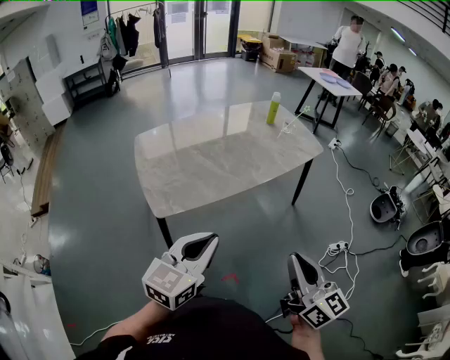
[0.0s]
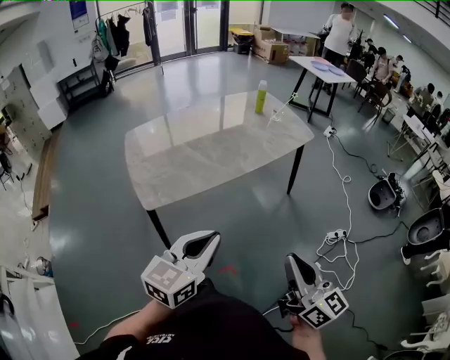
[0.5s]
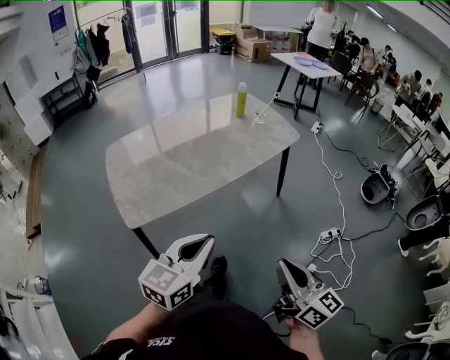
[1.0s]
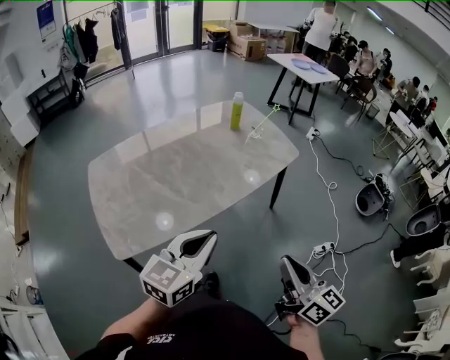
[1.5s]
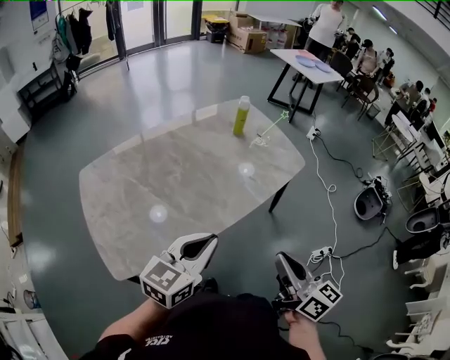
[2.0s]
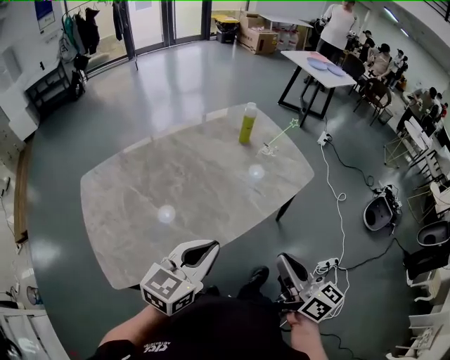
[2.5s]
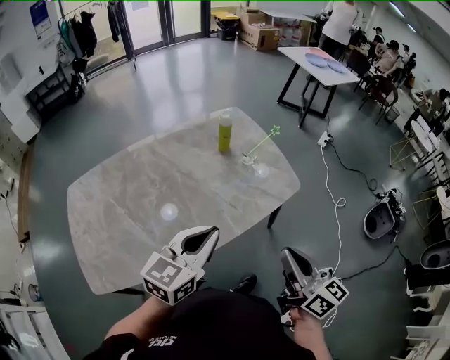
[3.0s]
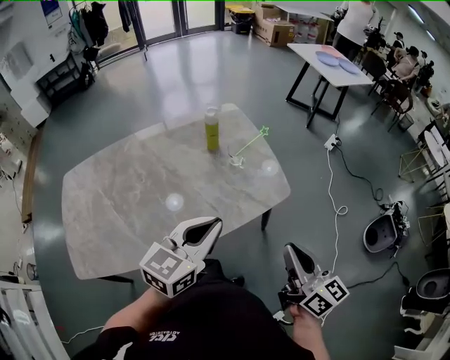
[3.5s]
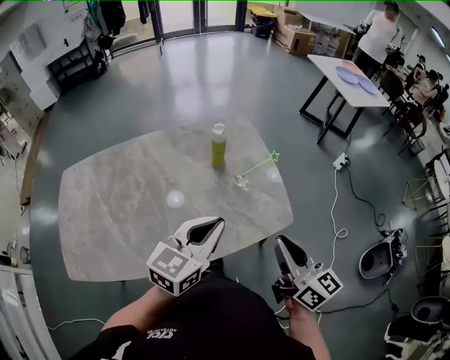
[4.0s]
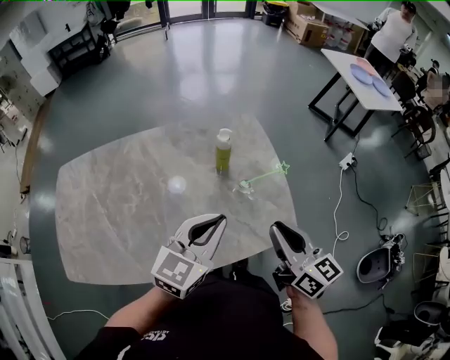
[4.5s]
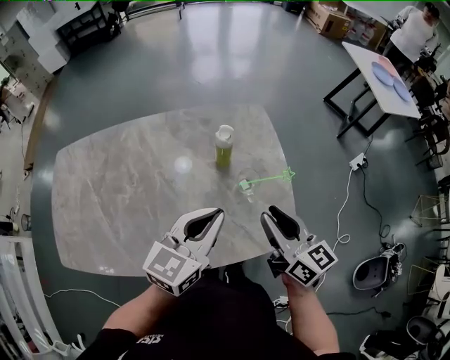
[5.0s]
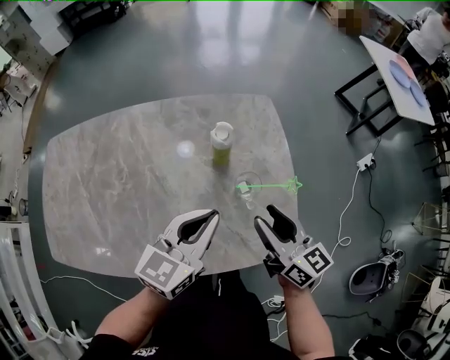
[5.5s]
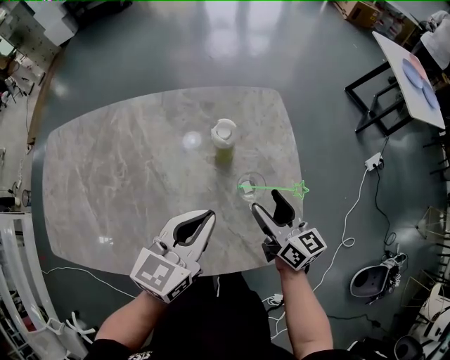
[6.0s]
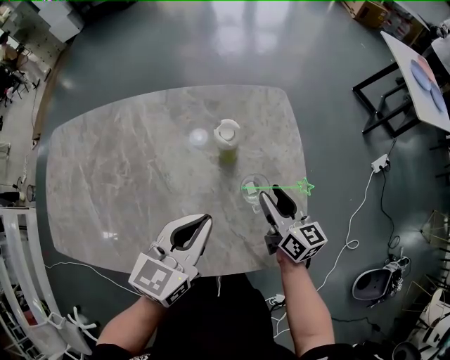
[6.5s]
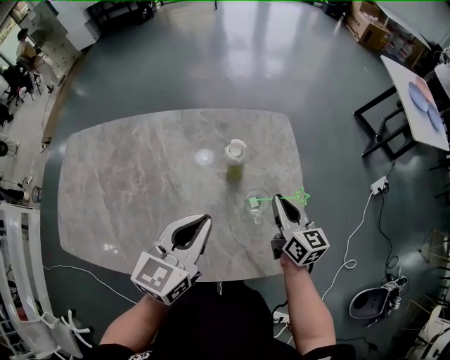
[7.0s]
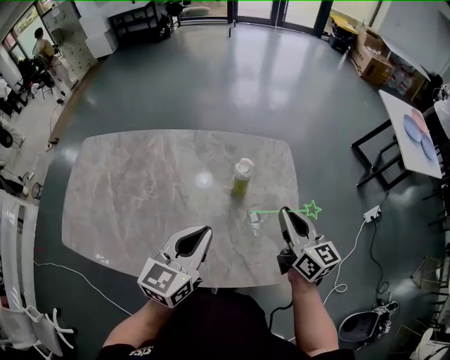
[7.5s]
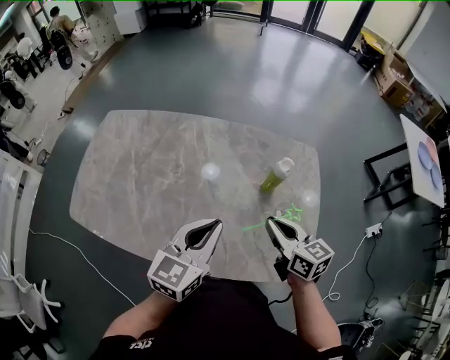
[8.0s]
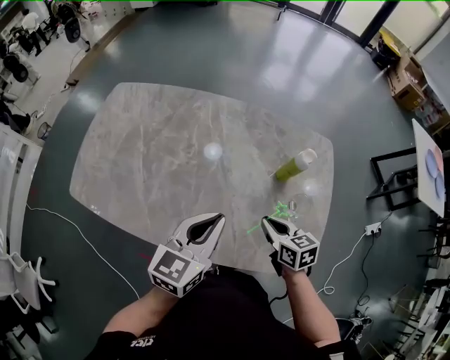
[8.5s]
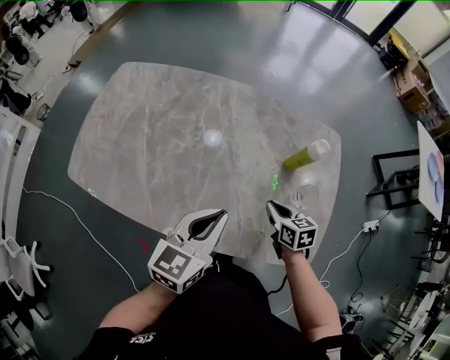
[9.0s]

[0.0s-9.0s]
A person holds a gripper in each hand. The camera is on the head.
0.0s to 2.0s: The two grippers go approximately 30 cm forward.
2.0s to 4.5s: Both grippers are carried forward and to the right, about 50 cm. The right gripper rotates about 20 degrees, while the left gripper turns by some 20 degrees.
4.5s to 7.0s: The right gripper shifts approximately 25 cm forward and downward, and opens, then closes once more; the left gripper heads forward, covering about 10 cm, and rotates roughly 20 degrees.
7.0s to 9.0s: The right gripper shifts approximately 20 cm to the left, and turns by some 40 degrees. Meanwhile the left gripper moves to the left and backward, roughly 15 cm.

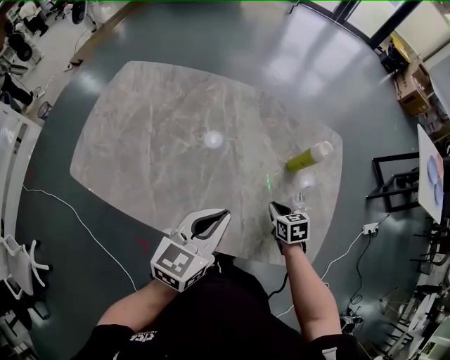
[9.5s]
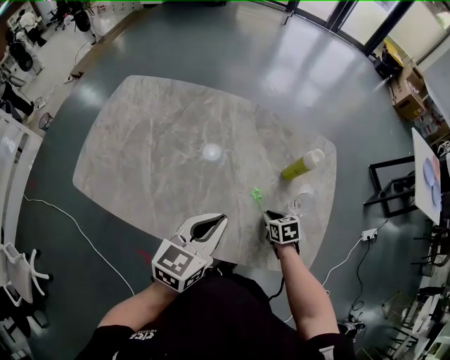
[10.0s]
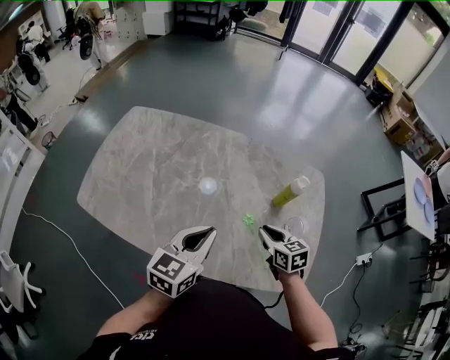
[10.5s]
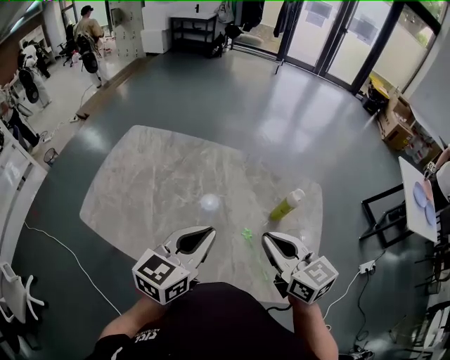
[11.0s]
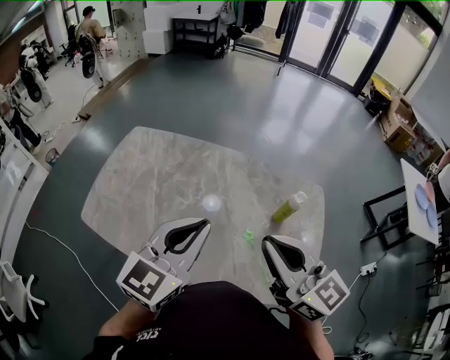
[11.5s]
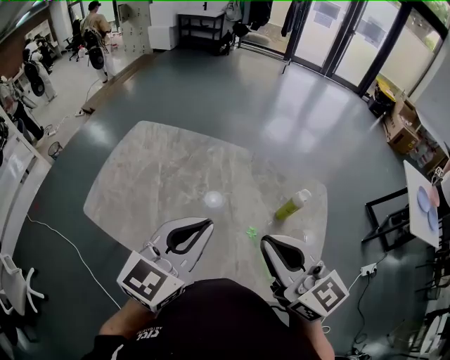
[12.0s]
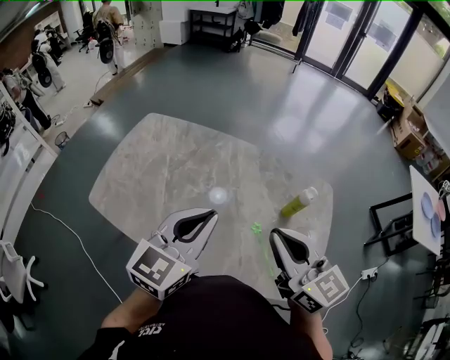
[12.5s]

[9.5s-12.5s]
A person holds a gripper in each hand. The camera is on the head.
9.5s to 11.0s: The right gripper is displaced upward by about 35 cm, and angles its fingers upward, by approximately 40 degrees, while the left gripper moves upward, roughly 10 cm.
11.0s to 12.5s: The right gripper moves upward, about 5 cm; the left gripper moves approximately 5 cm.

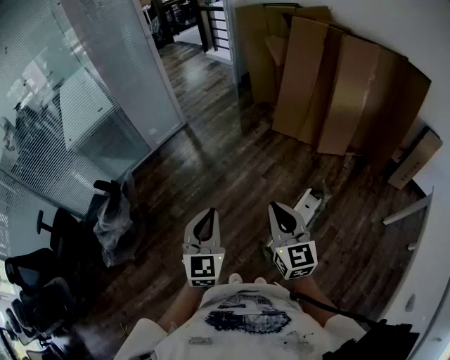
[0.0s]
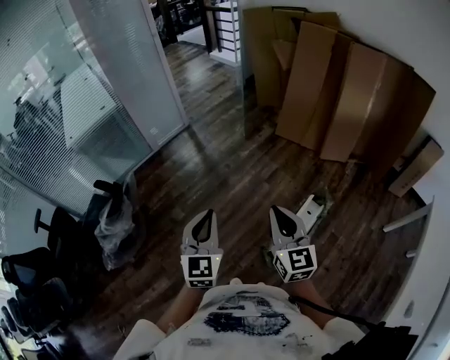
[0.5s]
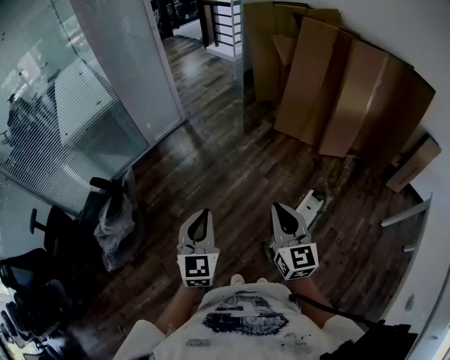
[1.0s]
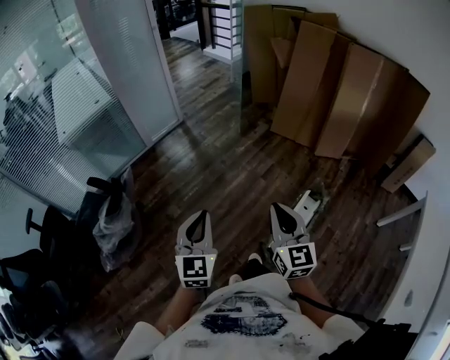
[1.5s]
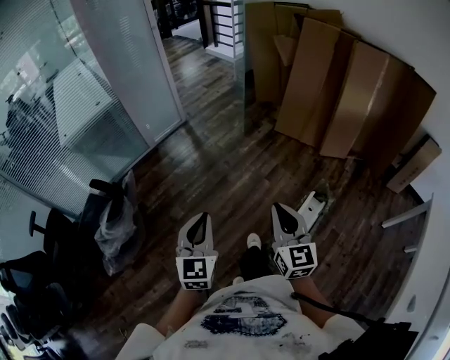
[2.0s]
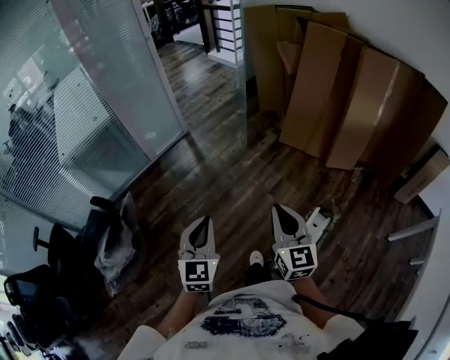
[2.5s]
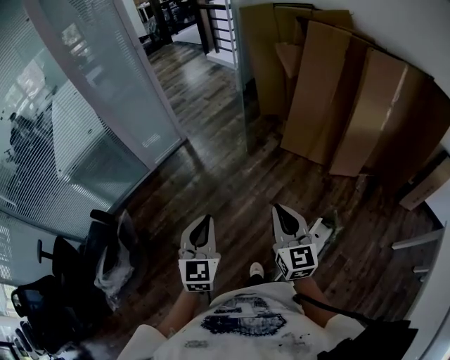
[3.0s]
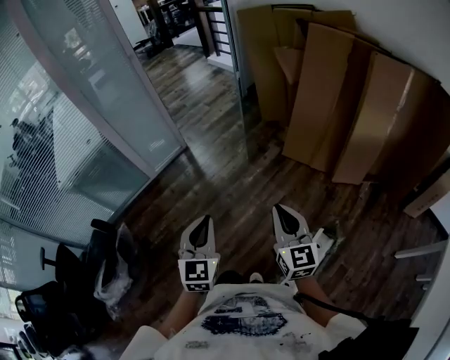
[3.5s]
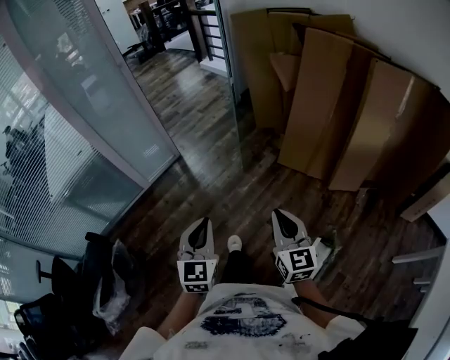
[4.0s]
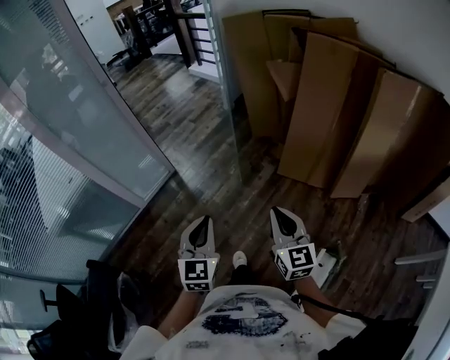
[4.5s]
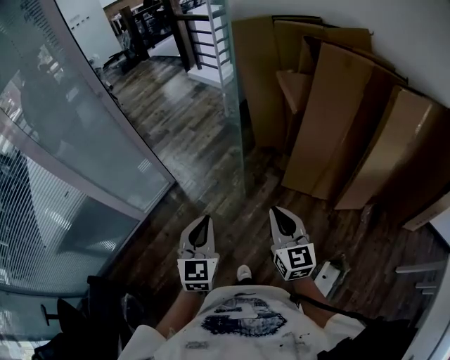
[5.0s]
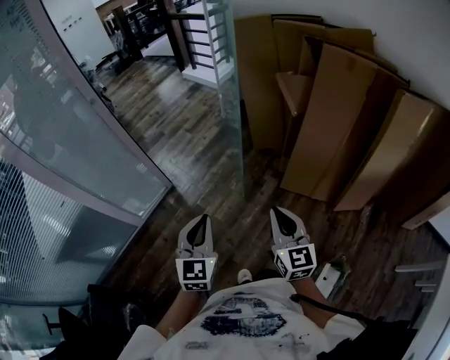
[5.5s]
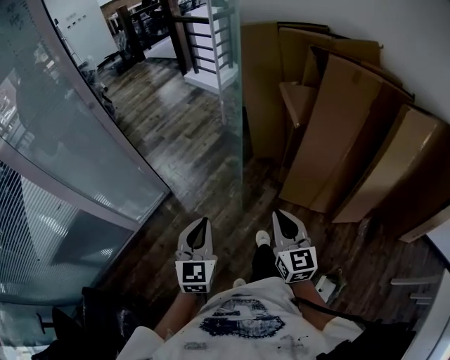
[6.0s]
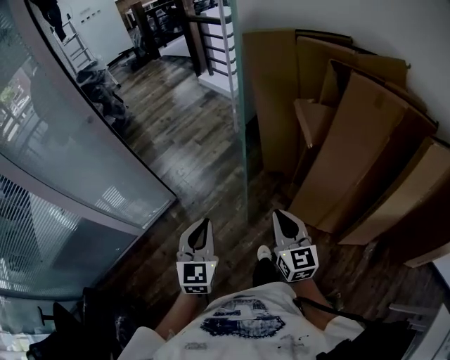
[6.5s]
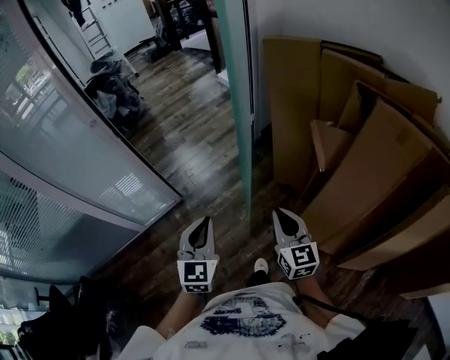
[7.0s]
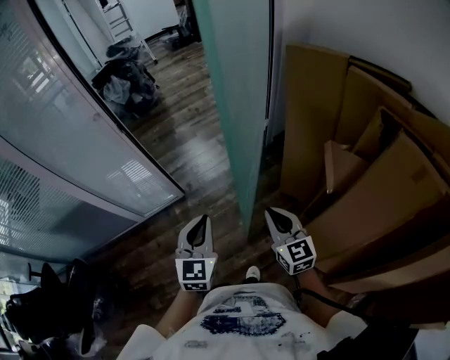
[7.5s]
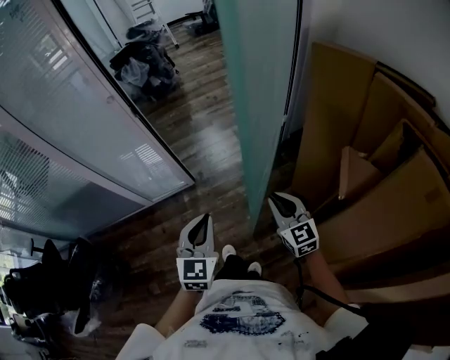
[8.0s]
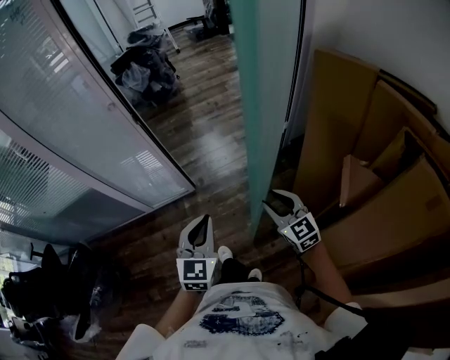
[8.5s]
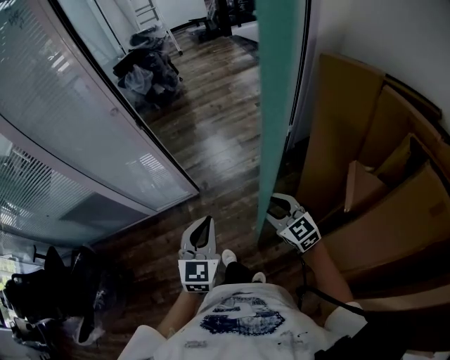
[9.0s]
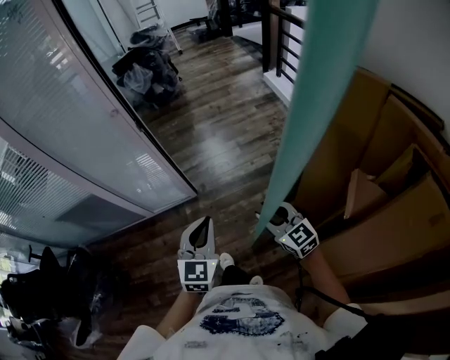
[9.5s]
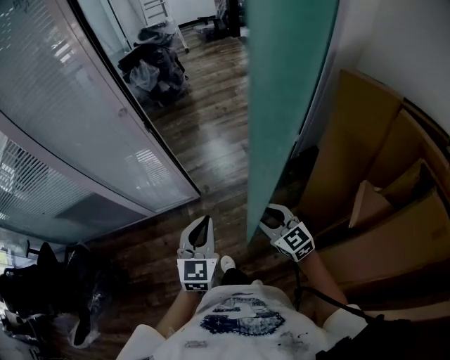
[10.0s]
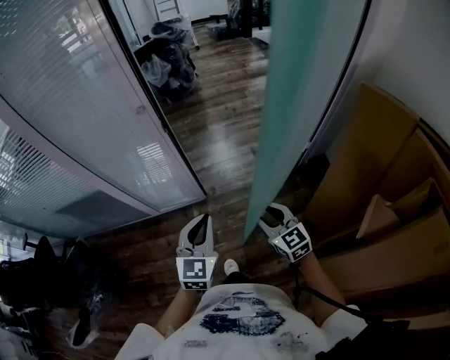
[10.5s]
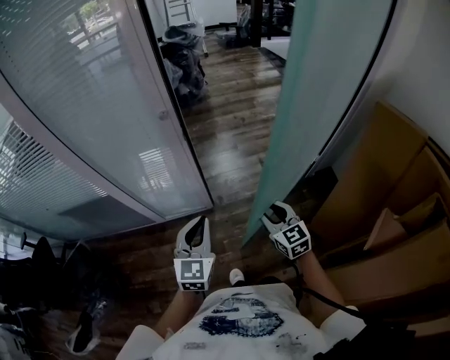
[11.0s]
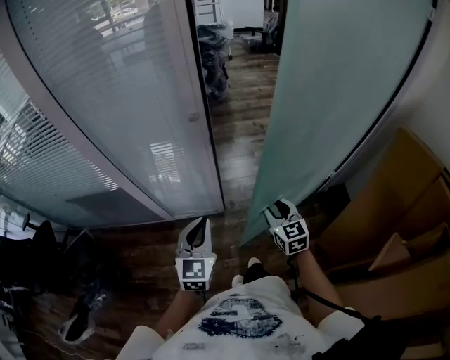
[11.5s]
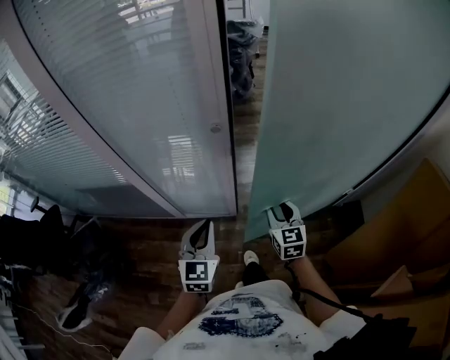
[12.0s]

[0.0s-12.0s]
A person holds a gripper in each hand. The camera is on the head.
0.0s to 2.0s: The two grippers go roughly 10 cm to the left.
2.0s to 4.0s: The grippers both shift forward by roughly 35 cm.
4.0s to 6.0s: The two grippers go about 35 cm forward.
6.0s to 8.0s: The right gripper ends up approximately 40 cm from where it was, and changes its angle by some 40 degrees; the left gripper ends up some 25 cm from where it was, and changes its angle by some 30 degrees.
8.0s to 10.0s: The left gripper is displaced forward by approximately 10 cm; the right gripper is displaced forward and to the left by roughly 15 cm, and opens its fingers.
10.0s to 12.0s: The right gripper goes approximately 30 cm forward and to the left; the left gripper travels to the left and forward by some 25 cm.

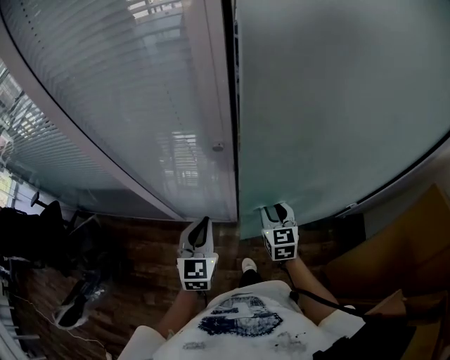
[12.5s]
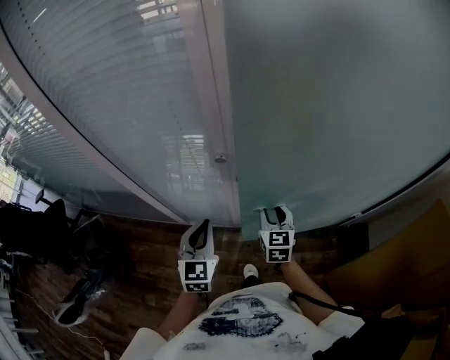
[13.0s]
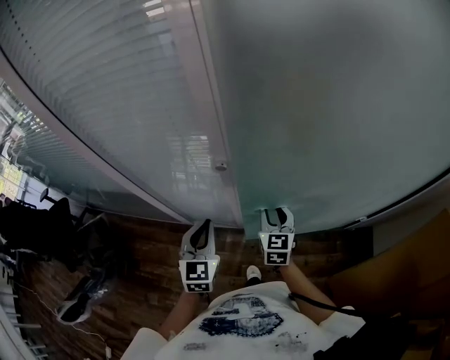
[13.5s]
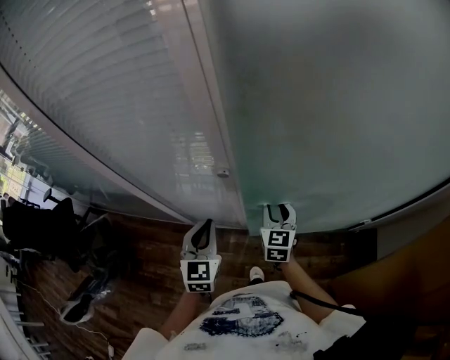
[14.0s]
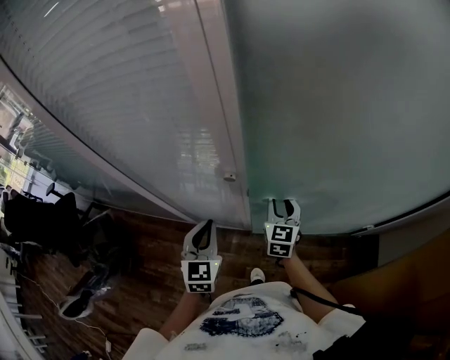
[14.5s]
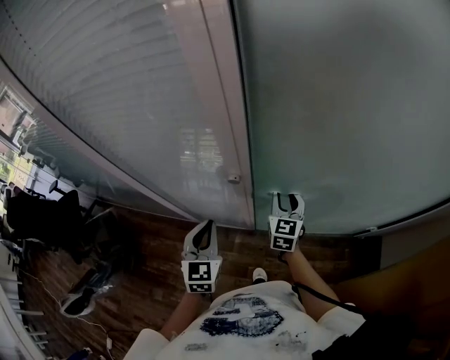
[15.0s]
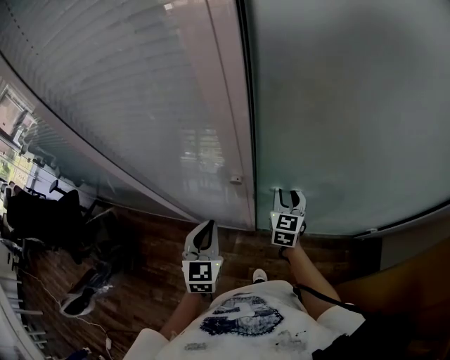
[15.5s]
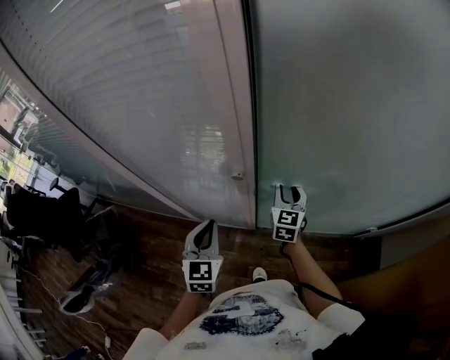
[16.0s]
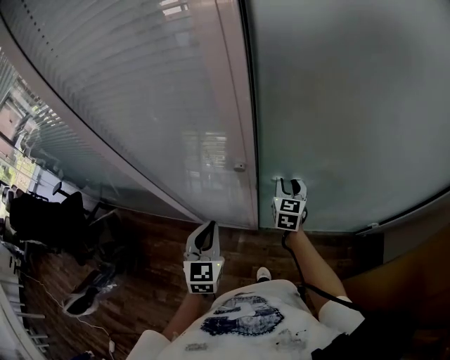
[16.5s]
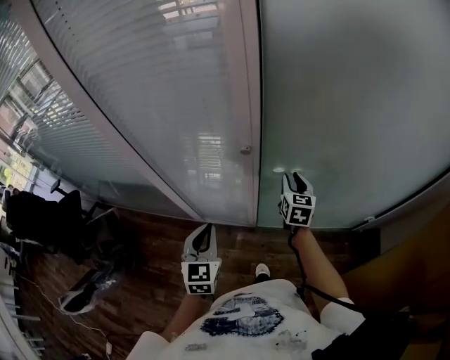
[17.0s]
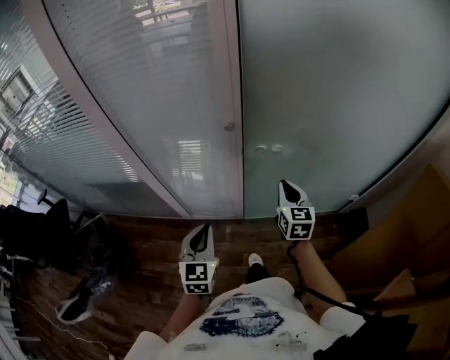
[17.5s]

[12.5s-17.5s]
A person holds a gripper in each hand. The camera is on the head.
12.5s to 15.0s: The right gripper is displaced forward by approximately 15 cm, while the left gripper goes approximately 5 cm forward.
15.0s to 17.5s: Both grippers travel together backward, approximately 15 cm. The right gripper closes.
